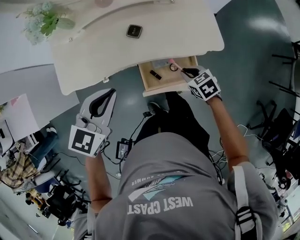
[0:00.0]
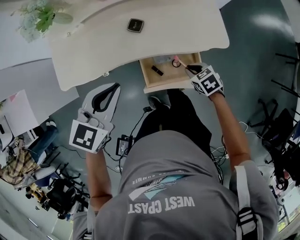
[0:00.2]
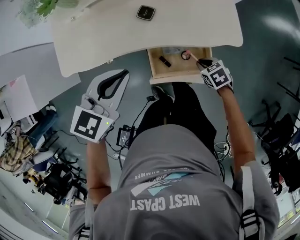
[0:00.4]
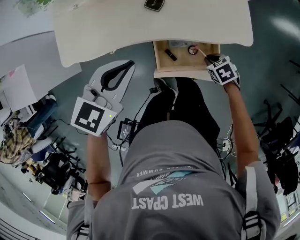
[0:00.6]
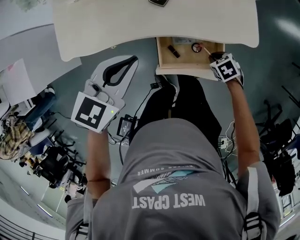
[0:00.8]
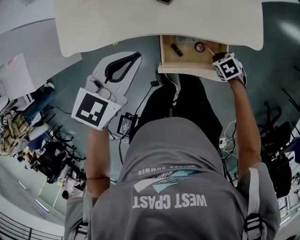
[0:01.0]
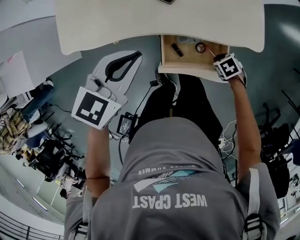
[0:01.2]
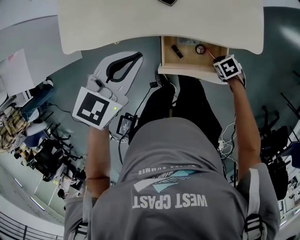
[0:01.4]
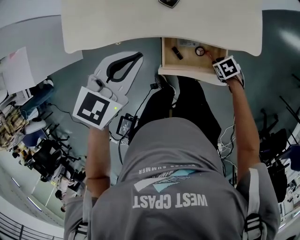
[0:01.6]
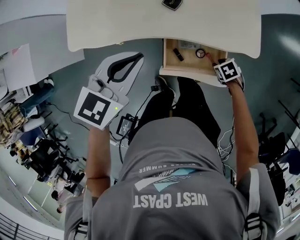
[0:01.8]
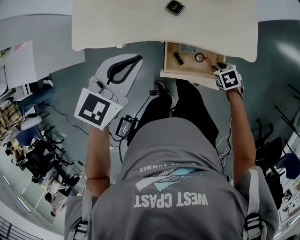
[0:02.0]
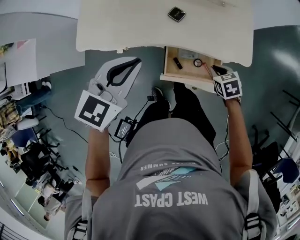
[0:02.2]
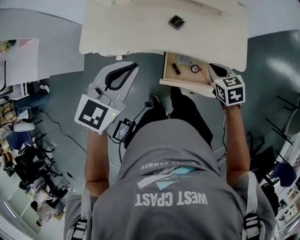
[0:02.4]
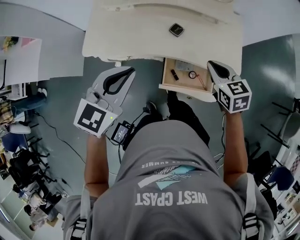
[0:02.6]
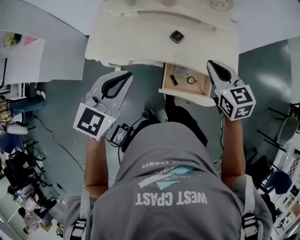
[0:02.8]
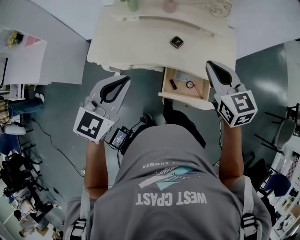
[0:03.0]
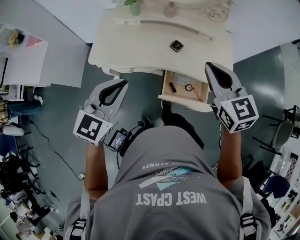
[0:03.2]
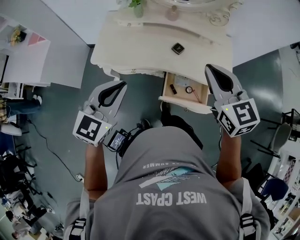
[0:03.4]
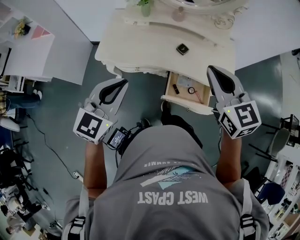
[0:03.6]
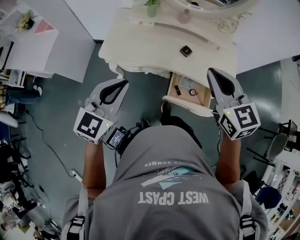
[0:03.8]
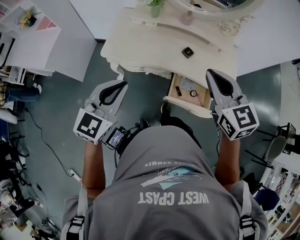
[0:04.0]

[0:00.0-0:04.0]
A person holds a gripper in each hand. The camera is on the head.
0:00.0 to 0:01.4: The right gripper goes roughly 10 cm downward, and swivels approximately 30 degrees.
0:01.4 to 0:02.6: The left gripper is displaced upward by about 10 cm. The right gripper is displaced upward by some 30 cm, and points its fingers approximately 40 degrees further upward.
0:02.6 to 0:04.0: The left gripper goes roughly 15 cm to the left and backward. The right gripper is displaced upward, to the left and backward by roughly 25 cm, and swivels approximately 20 degrees.

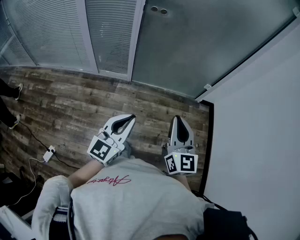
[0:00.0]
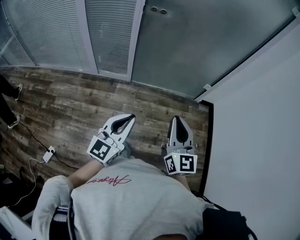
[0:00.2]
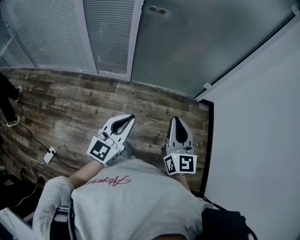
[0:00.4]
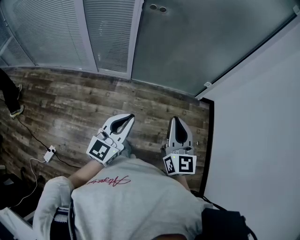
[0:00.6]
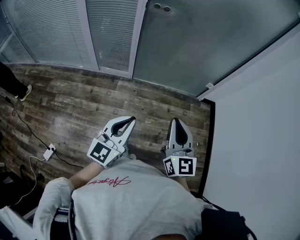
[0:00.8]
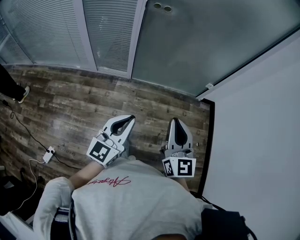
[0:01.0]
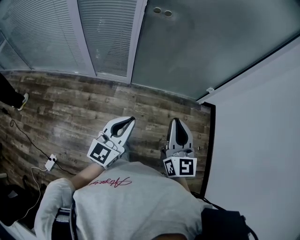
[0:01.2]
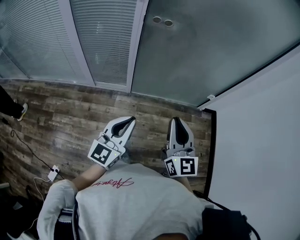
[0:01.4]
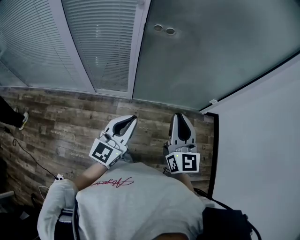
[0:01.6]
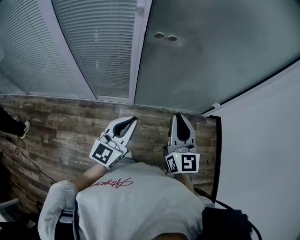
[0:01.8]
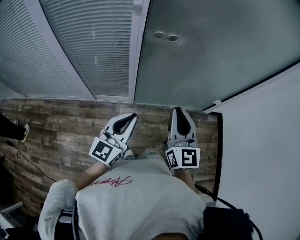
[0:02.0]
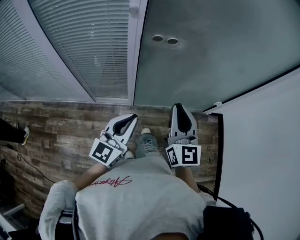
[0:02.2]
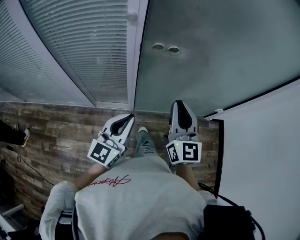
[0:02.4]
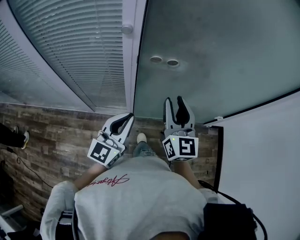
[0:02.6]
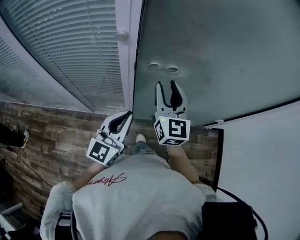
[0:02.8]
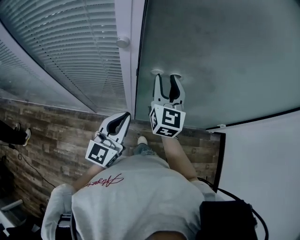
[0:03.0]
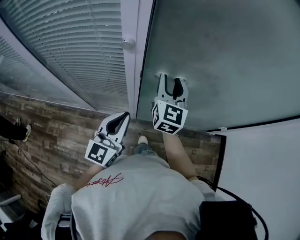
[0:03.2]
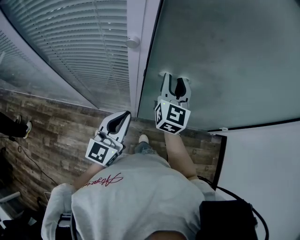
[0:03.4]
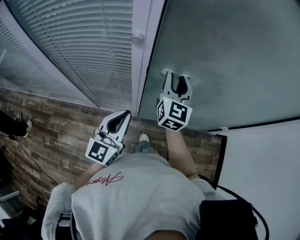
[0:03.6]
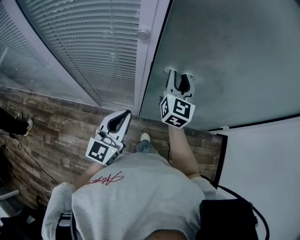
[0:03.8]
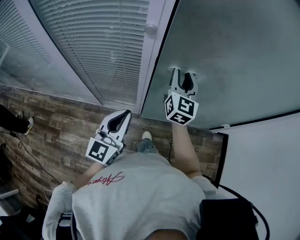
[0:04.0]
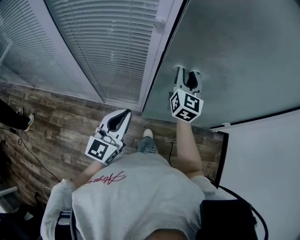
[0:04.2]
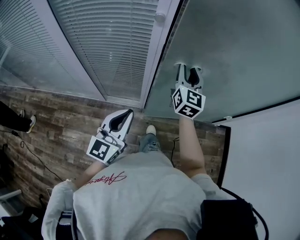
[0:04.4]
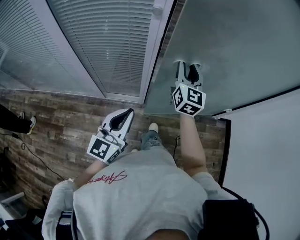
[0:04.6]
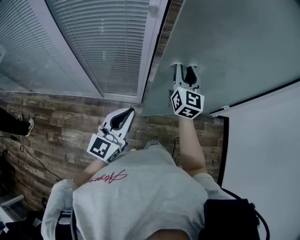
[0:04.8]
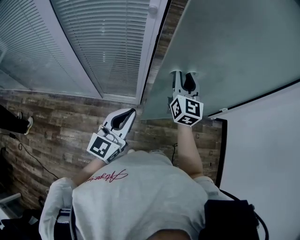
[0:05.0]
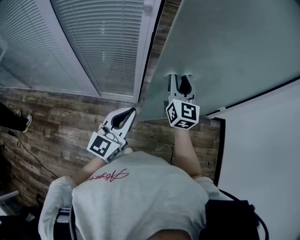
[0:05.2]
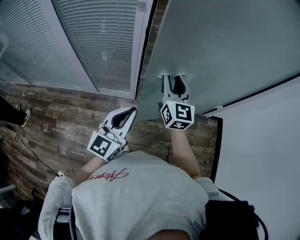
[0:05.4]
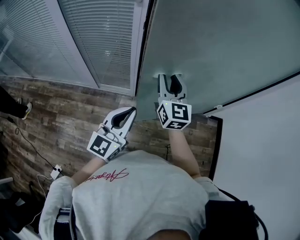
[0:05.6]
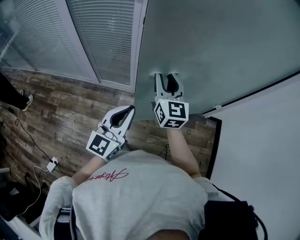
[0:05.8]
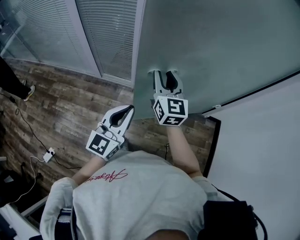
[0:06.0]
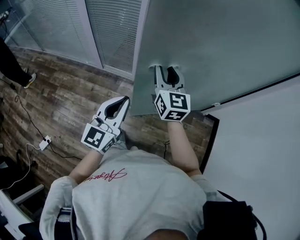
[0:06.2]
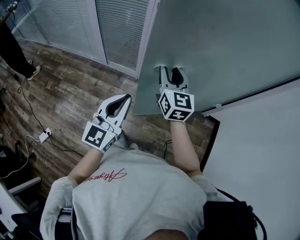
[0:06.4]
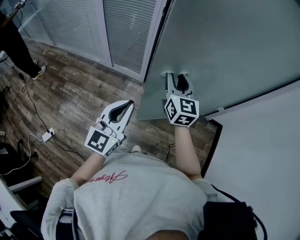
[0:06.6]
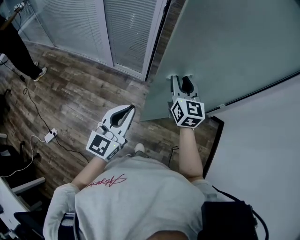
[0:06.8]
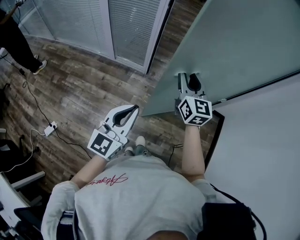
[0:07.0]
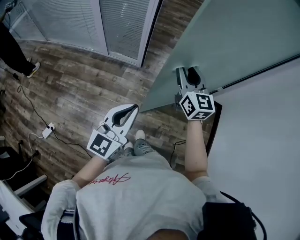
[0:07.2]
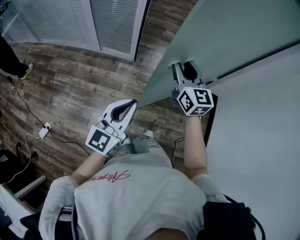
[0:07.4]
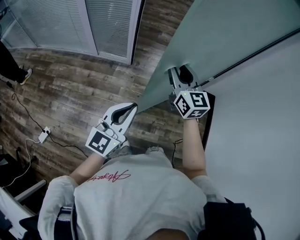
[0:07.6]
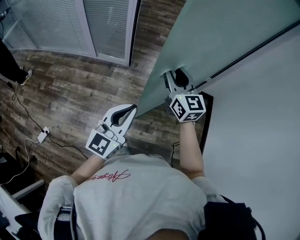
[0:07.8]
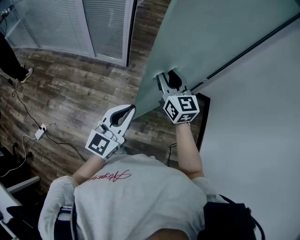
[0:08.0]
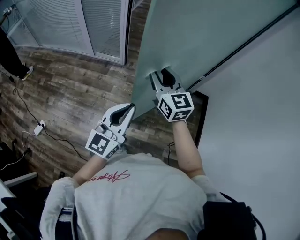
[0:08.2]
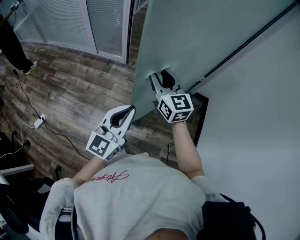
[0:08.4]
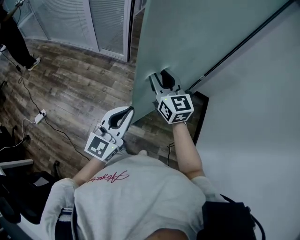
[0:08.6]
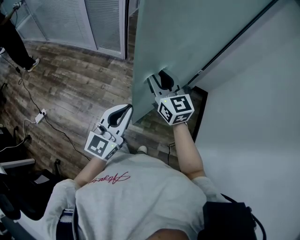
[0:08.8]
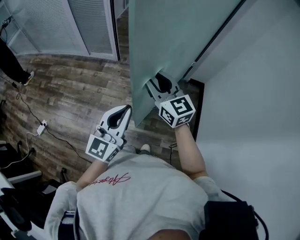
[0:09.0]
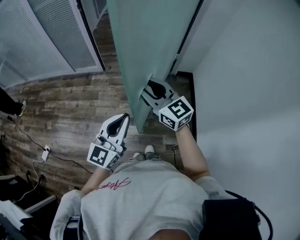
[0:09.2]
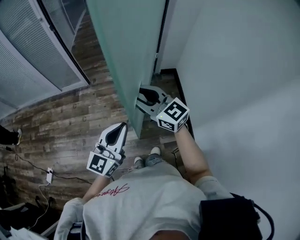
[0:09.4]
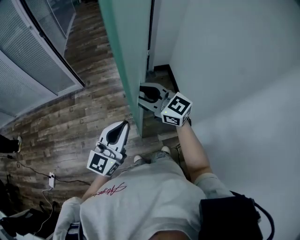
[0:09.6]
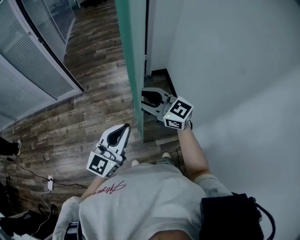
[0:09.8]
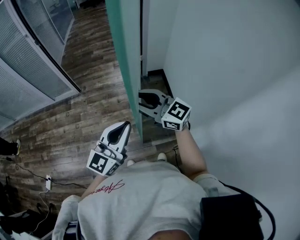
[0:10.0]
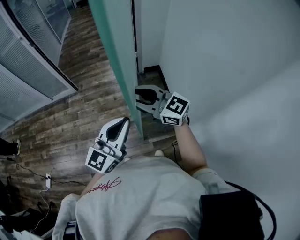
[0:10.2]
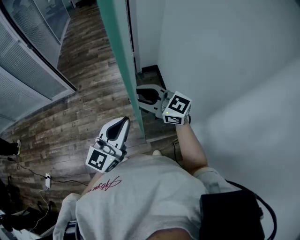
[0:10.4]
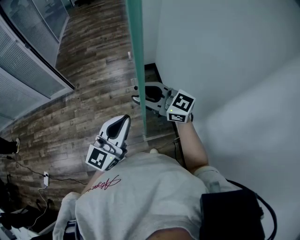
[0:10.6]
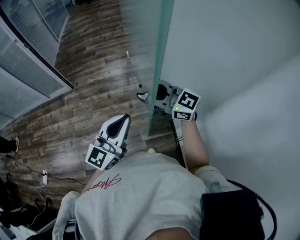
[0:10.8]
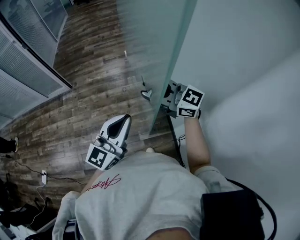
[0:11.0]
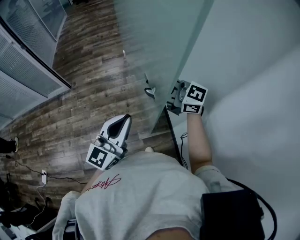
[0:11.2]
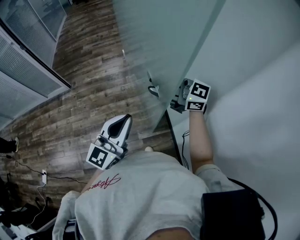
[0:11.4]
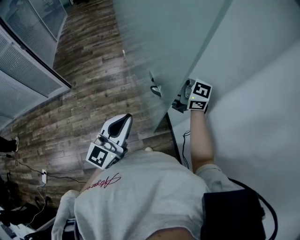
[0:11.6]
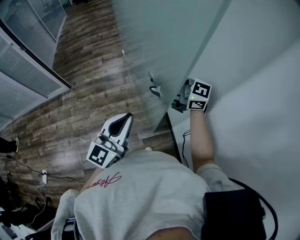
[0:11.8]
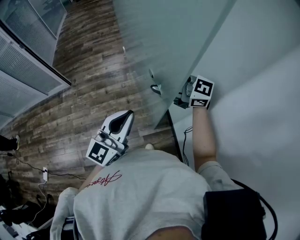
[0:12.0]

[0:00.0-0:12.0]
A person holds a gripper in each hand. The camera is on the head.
0:00.0 to 0:01.6: The grippers both shift forward and to the left by approximately 25 cm.
0:01.6 to 0:03.0: Both grippers travel together forward, about 35 cm. The right gripper opens its fingers.
0:03.0 to 0:04.4: The left gripper moves backward, roughly 10 cm.
0:04.4 to 0:06.0: The left gripper heads to the right and backward, covering approximately 25 cm, while the right gripper goes about 25 cm backward, and turns by some 20 degrees.
0:06.0 to 0:07.6: The right gripper heads backward and to the right, covering approximately 20 cm, while the left gripper goes about 20 cm backward.
0:07.6 to 0:09.0: The left gripper moves to the right and backward, roughly 25 cm. Meanwhile the right gripper moves backward and to the right, about 25 cm.
0:09.0 to 0:10.4: The left gripper travels to the right by about 25 cm, and turns by approximately 30 degrees. The right gripper travels to the right and backward by roughly 25 cm.
0:10.4 to 0:12.0: The left gripper goes approximately 10 cm to the right. The right gripper shifts some 15 cm to the right.

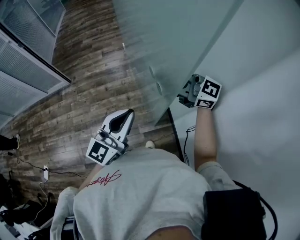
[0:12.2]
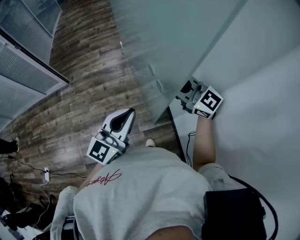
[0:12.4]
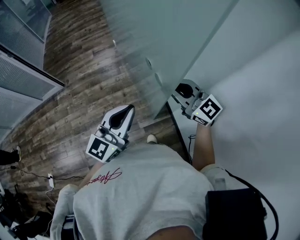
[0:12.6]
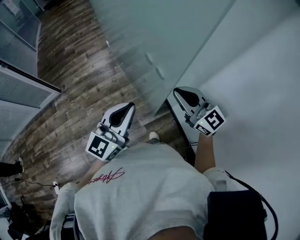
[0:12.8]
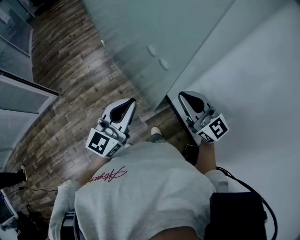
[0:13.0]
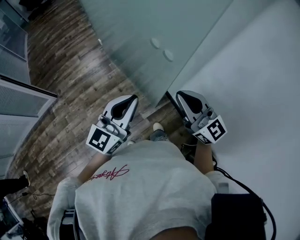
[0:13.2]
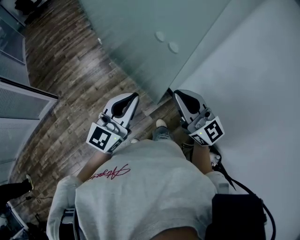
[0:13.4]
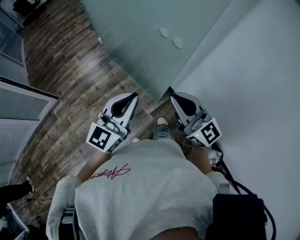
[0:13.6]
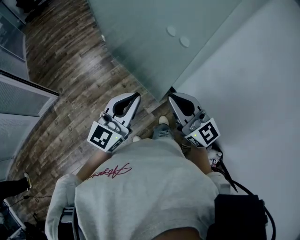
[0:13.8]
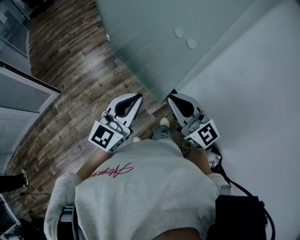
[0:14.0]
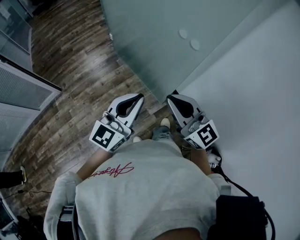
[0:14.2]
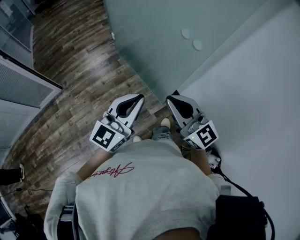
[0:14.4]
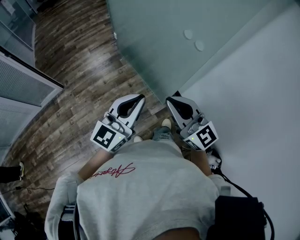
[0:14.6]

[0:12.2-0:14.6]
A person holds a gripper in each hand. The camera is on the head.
0:12.2 to 0:13.4: The right gripper shifts by approximately 20 cm, changes its angle by approximately 50 degrees, and closes up. Meanwhile the left gripper changes place by approximately 5 cm, and rotates roughly 20 degrees.
0:13.4 to 0:14.6: Both grippers travel together to the left and backward, approximately 10 cm.

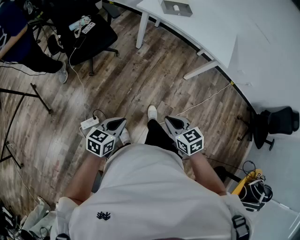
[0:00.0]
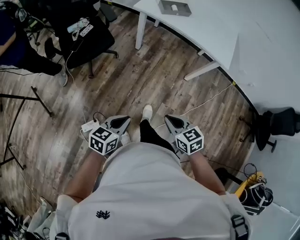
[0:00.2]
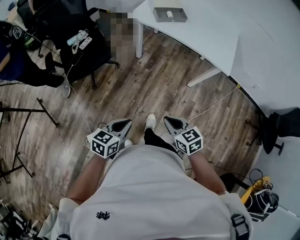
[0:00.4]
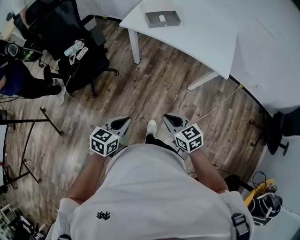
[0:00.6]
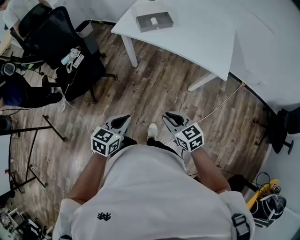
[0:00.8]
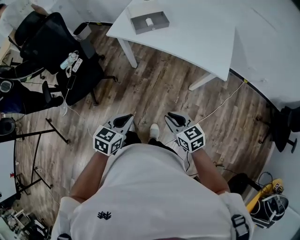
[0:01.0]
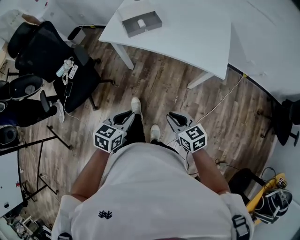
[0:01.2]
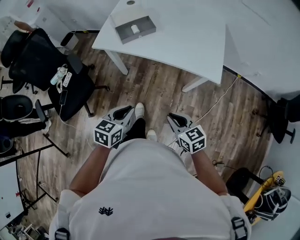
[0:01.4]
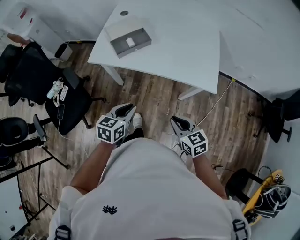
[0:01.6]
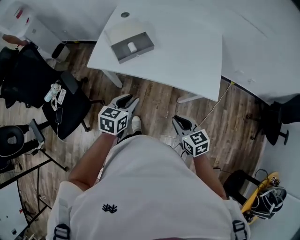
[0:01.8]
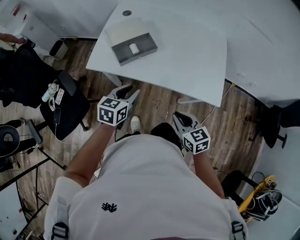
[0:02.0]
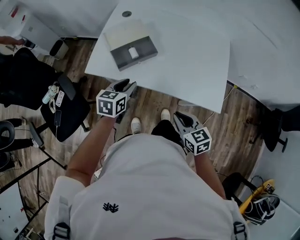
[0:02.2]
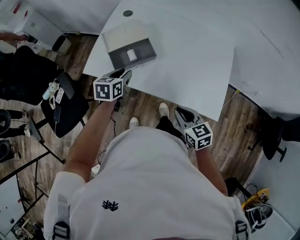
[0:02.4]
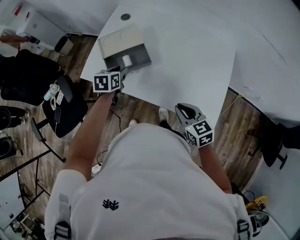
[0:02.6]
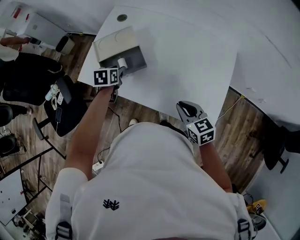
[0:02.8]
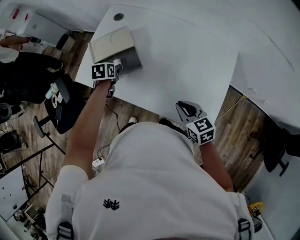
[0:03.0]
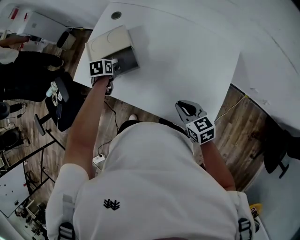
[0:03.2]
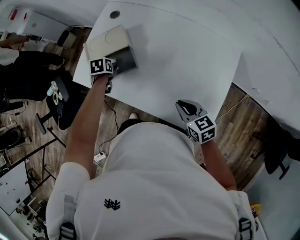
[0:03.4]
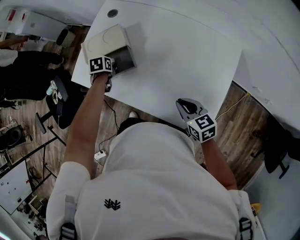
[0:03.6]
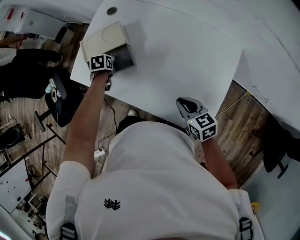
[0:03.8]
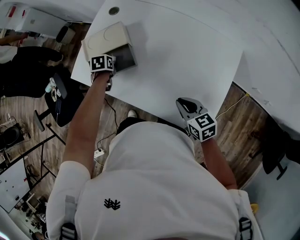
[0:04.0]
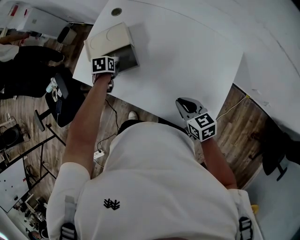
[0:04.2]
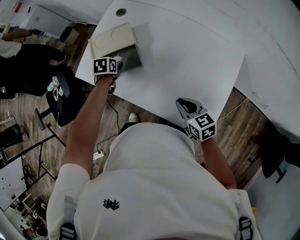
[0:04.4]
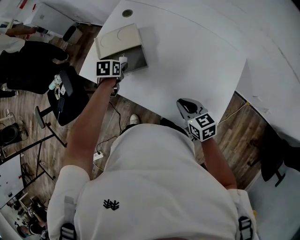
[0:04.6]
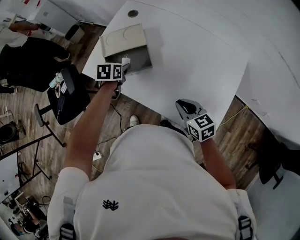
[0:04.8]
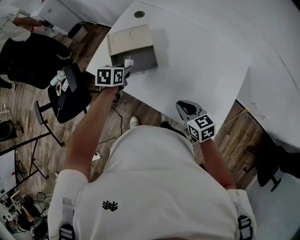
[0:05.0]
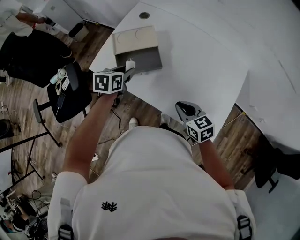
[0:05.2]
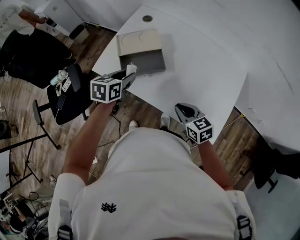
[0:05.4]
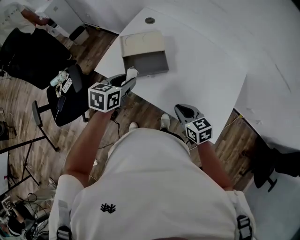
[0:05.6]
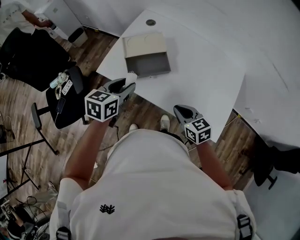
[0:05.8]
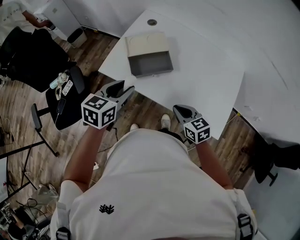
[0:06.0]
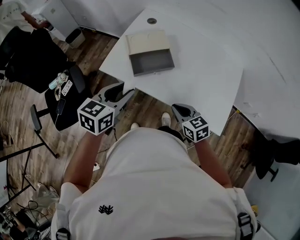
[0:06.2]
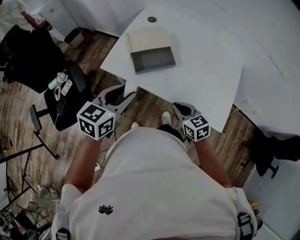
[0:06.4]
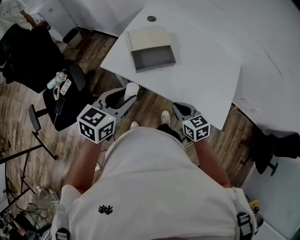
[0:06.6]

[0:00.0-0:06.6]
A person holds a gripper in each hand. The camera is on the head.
0:00.0 to 0:01.6: Both grippers travel together forward and to the right, roughly 40 cm.
0:01.6 to 0:03.2: The left gripper moves roughly 40 cm, points its fingers roughly 30 degrees further downward, and opens up, while the right gripper ends up about 30 cm from where it was.
0:03.2 to 0:05.0: The right gripper shifts by about 5 cm. Meanwhile the left gripper shifts roughly 5 cm upward.
0:05.0 to 0:06.6: The left gripper shifts some 25 cm backward, upward and to the left, and turns by some 30 degrees. The right gripper heads to the left, covering approximately 15 cm.
